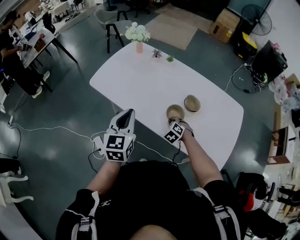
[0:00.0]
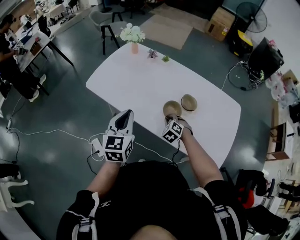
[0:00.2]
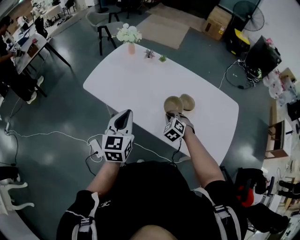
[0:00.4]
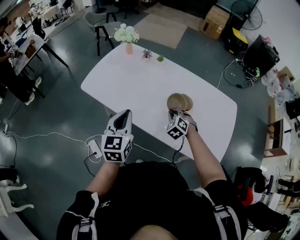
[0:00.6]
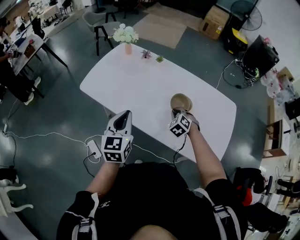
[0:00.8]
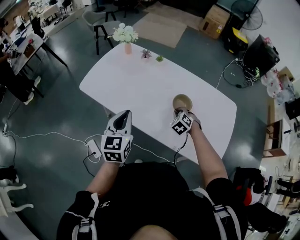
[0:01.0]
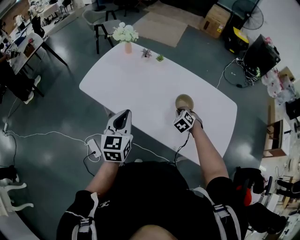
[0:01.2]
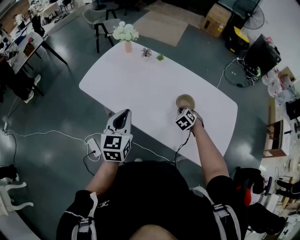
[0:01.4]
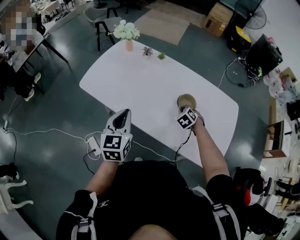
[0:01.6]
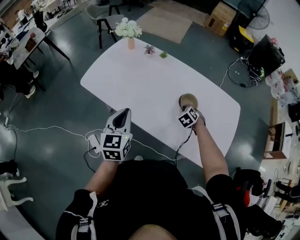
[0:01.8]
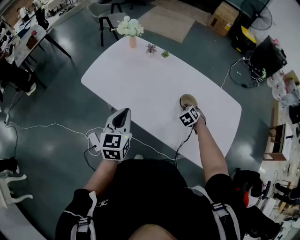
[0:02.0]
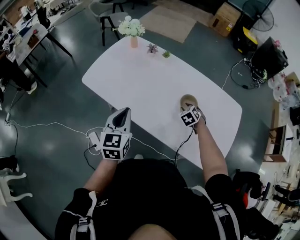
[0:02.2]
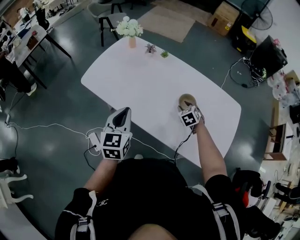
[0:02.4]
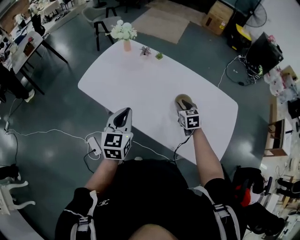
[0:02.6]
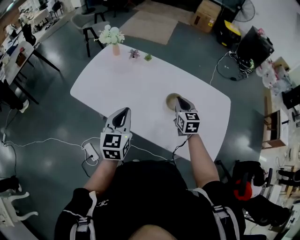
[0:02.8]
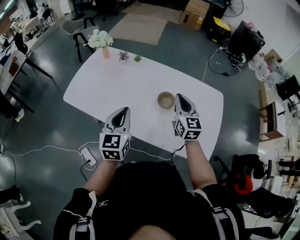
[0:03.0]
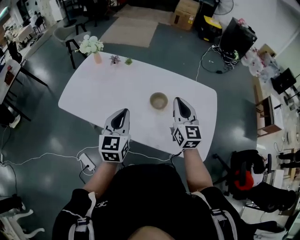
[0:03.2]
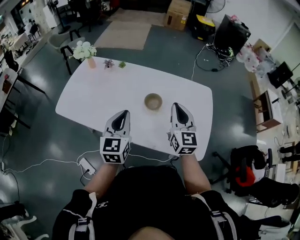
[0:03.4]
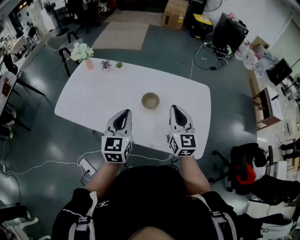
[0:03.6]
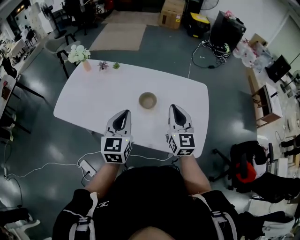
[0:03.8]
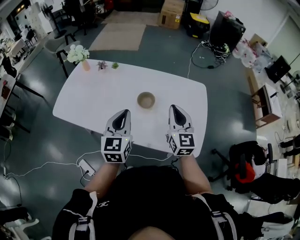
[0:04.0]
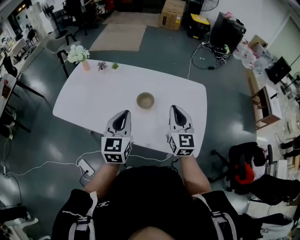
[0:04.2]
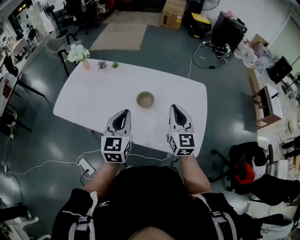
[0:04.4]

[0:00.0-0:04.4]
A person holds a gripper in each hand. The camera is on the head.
0.0 to 1.4 s: The right gripper shifts approximately 10 cm to the right and forward.
1.4 to 3.0 s: The right gripper heads upward, covering roughly 20 cm, tips its fingers upward by roughly 50 degrees, and opens, then closes again. Meanwhile the left gripper moves to the right, about 10 cm.
3.0 to 4.4 s: The right gripper shifts about 15 cm to the right and backward. Meanwhile the left gripper heads to the right, covering some 15 cm.

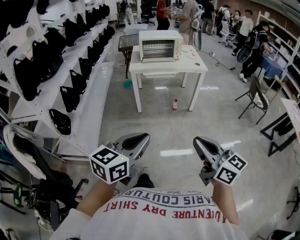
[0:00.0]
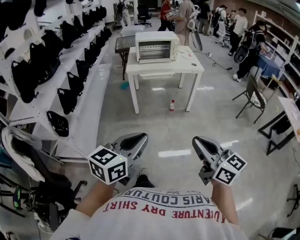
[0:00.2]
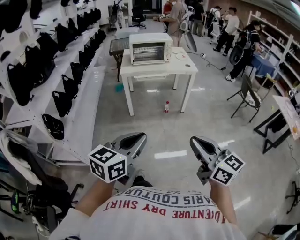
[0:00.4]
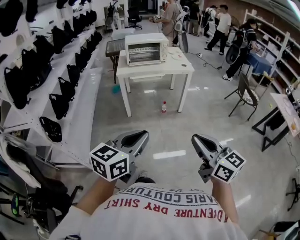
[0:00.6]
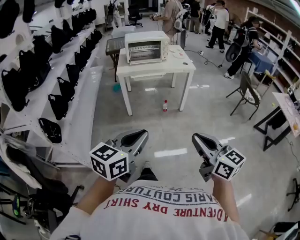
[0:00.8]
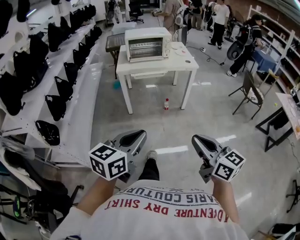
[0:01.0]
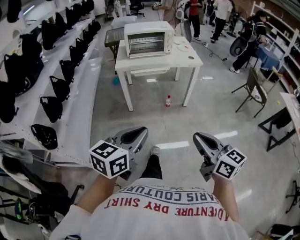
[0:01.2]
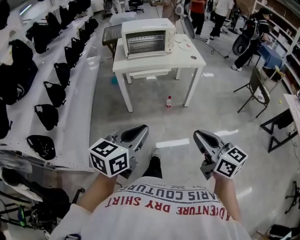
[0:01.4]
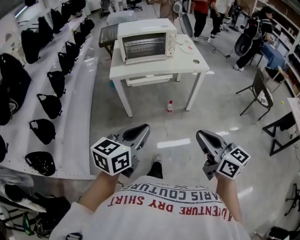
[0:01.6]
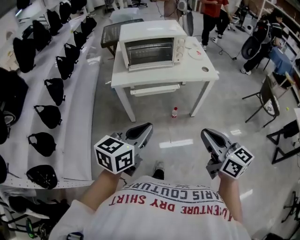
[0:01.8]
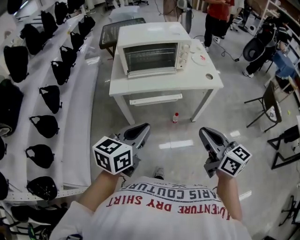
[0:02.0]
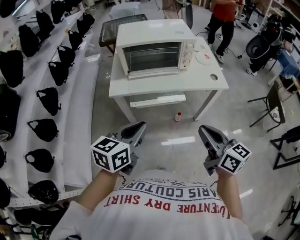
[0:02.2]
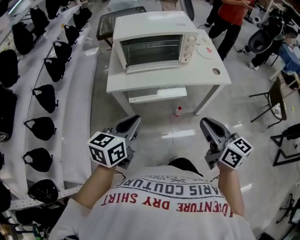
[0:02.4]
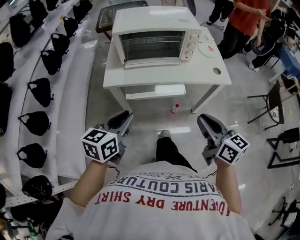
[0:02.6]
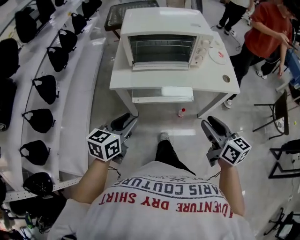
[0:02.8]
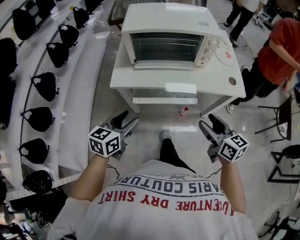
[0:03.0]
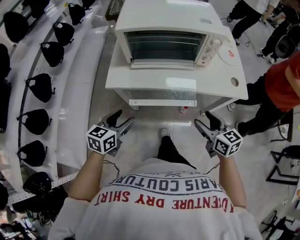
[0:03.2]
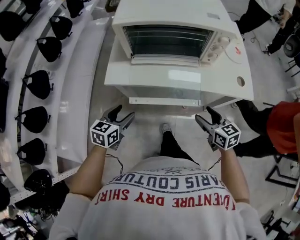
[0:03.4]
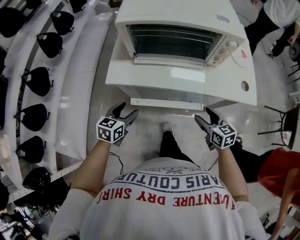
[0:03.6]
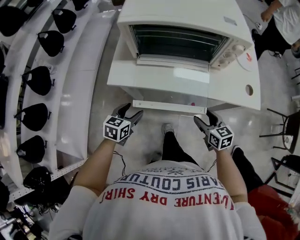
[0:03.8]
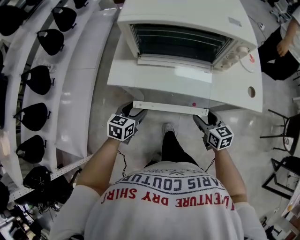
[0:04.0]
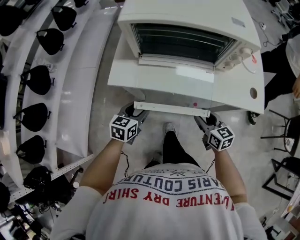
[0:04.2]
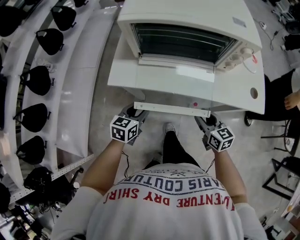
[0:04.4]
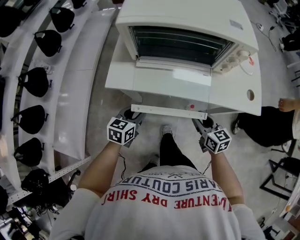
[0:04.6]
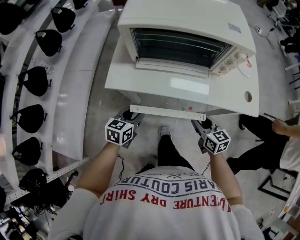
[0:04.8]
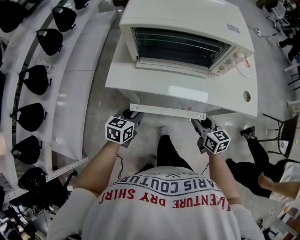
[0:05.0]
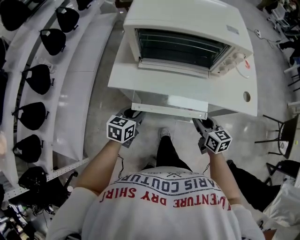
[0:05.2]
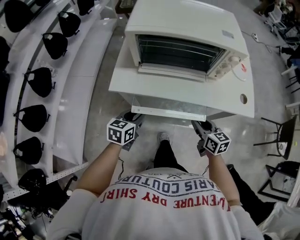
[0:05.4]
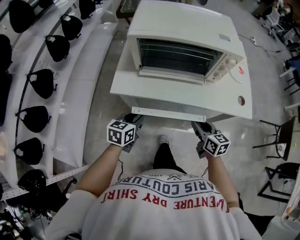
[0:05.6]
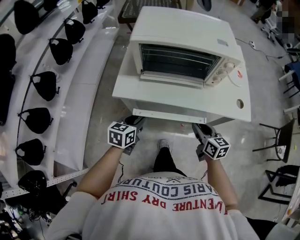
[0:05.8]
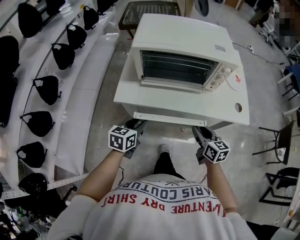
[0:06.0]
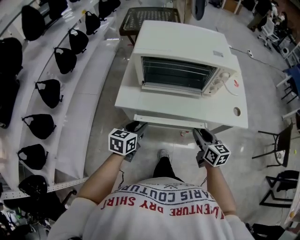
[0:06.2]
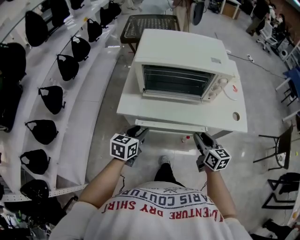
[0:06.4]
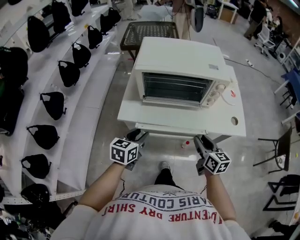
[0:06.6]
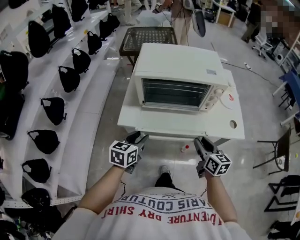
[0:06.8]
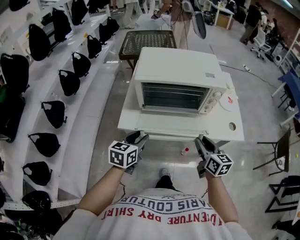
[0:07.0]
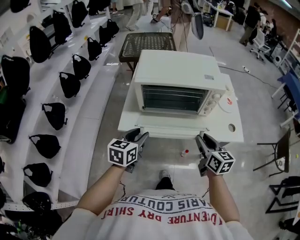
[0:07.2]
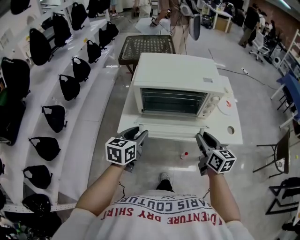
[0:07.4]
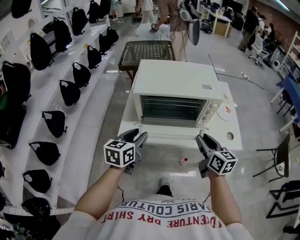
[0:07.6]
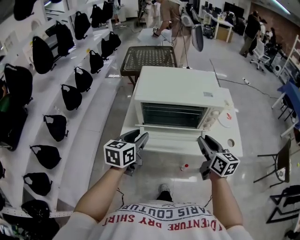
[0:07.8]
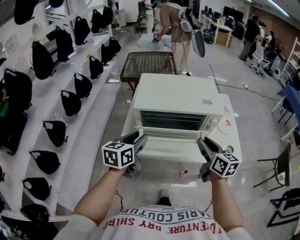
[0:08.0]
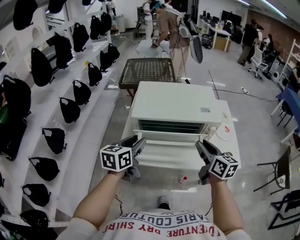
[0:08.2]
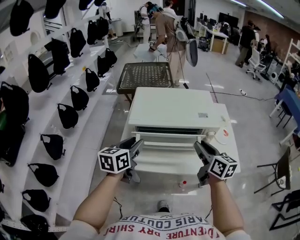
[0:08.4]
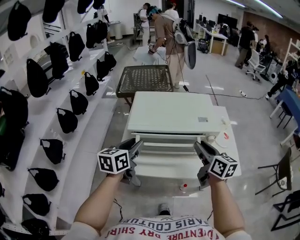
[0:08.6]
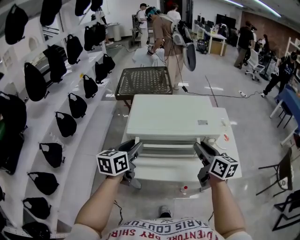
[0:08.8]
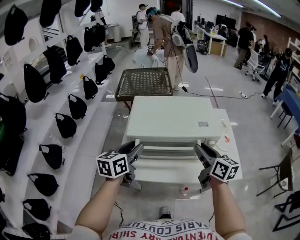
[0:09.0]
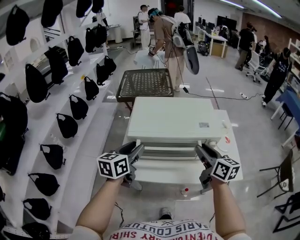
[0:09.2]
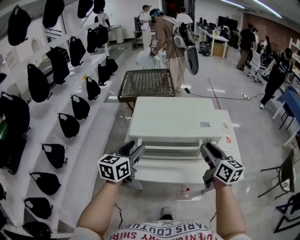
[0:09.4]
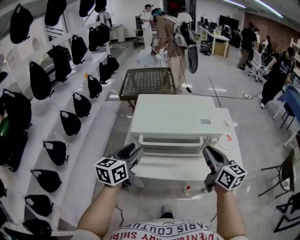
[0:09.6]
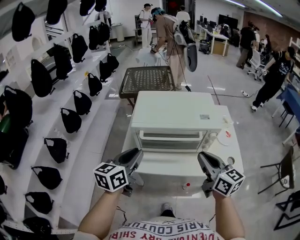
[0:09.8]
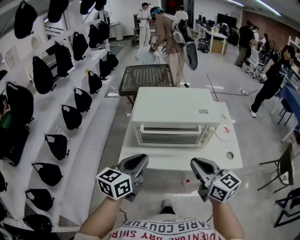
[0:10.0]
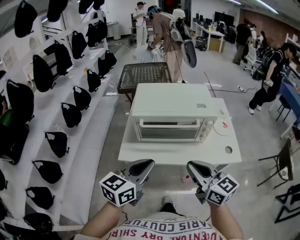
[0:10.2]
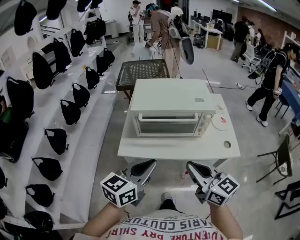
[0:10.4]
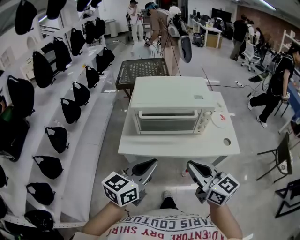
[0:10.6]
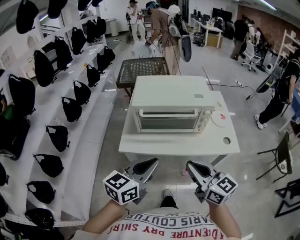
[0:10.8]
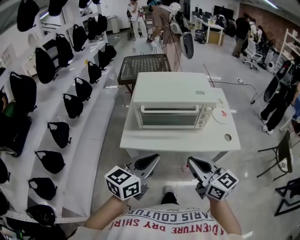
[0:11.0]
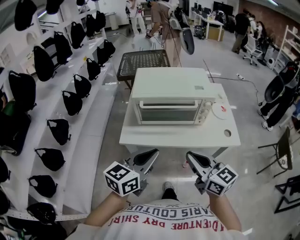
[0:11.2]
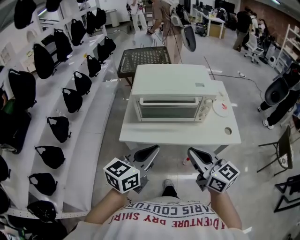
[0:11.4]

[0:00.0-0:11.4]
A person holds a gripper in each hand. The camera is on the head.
0.0 to 1.4 s: Both grippers travel together forward, some 20 cm.
1.4 to 2.8 s: Both grippers are carried forward, approximately 40 cm. The right gripper opens, while the left gripper opens up.
2.8 to 4.2 s: Both grippers travel together downward and forward, about 25 cm. The right gripper swivels some 20 degrees.
4.2 to 5.6 s: The left gripper ends up about 5 cm from where it was. The right gripper ends up about 5 cm from where it was.
5.6 to 7.2 s: The two grippers go approximately 15 cm upward.
7.2 to 8.6 s: Both grippers travel together forward and upward, approximately 15 cm.
8.6 to 10.0 s: The right gripper heads backward and to the left, covering approximately 15 cm, changes its angle by about 20 degrees, and closes. The left gripper moves backward, about 15 cm, and closes.
10.0 to 11.4 s: The right gripper shifts approximately 10 cm backward. The left gripper heads backward and to the right, covering about 10 cm.

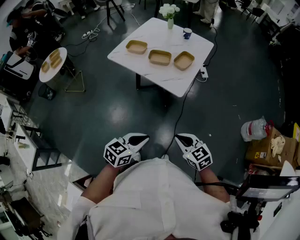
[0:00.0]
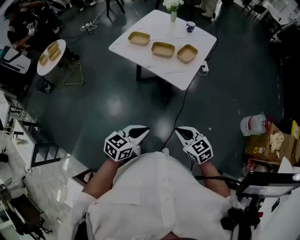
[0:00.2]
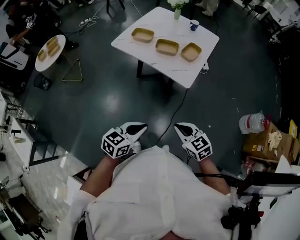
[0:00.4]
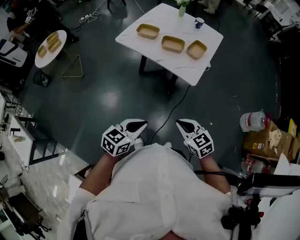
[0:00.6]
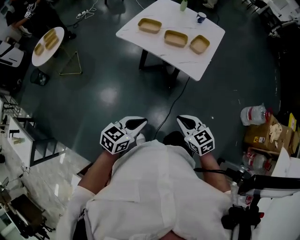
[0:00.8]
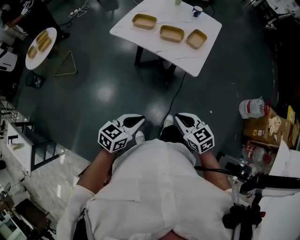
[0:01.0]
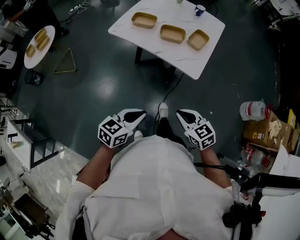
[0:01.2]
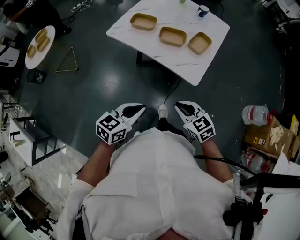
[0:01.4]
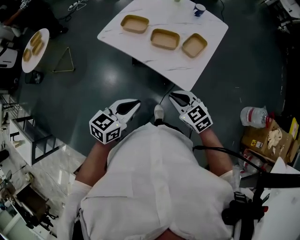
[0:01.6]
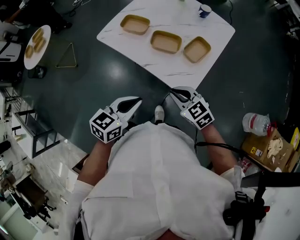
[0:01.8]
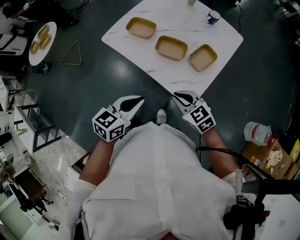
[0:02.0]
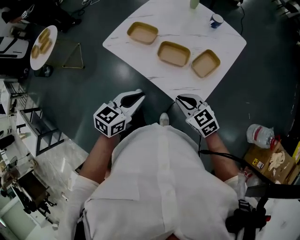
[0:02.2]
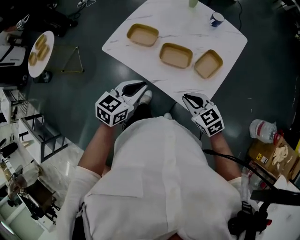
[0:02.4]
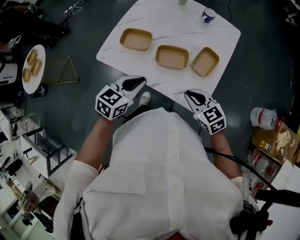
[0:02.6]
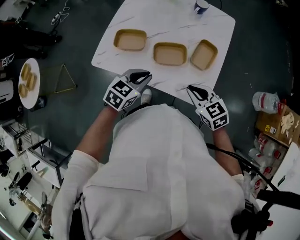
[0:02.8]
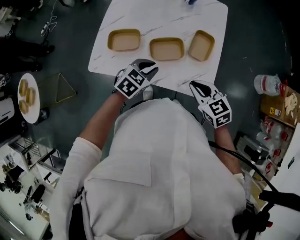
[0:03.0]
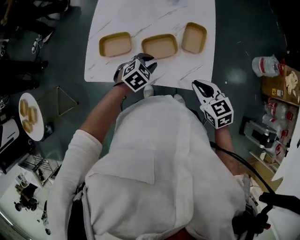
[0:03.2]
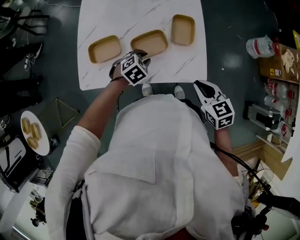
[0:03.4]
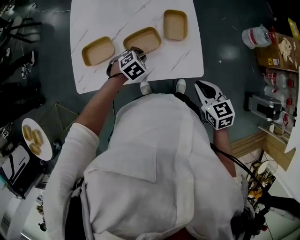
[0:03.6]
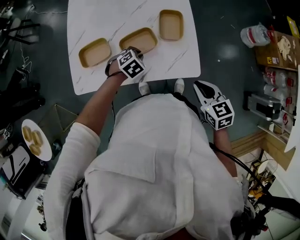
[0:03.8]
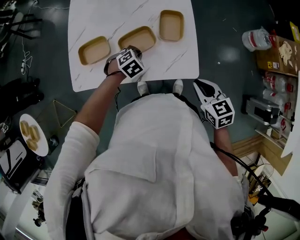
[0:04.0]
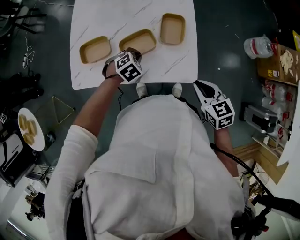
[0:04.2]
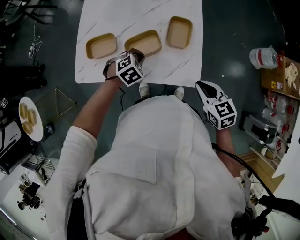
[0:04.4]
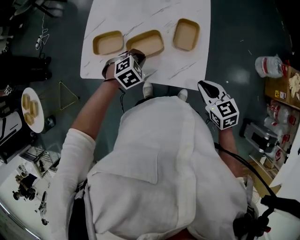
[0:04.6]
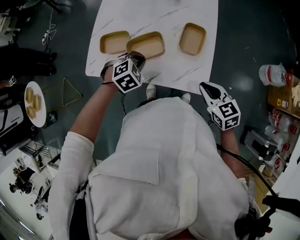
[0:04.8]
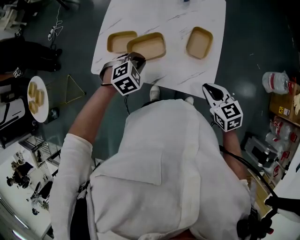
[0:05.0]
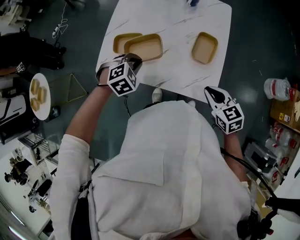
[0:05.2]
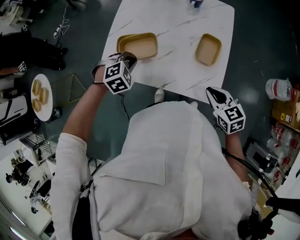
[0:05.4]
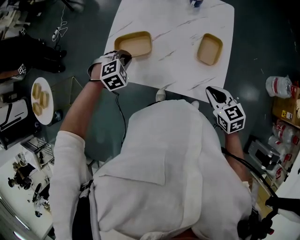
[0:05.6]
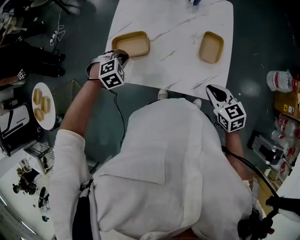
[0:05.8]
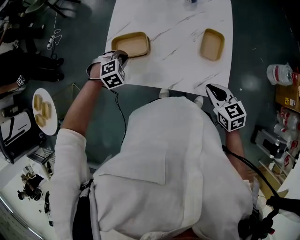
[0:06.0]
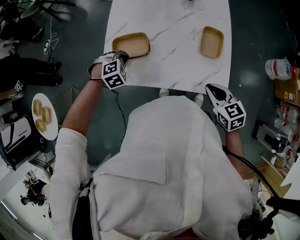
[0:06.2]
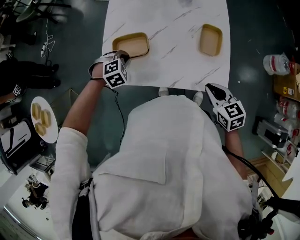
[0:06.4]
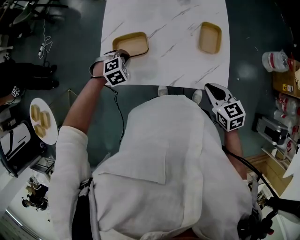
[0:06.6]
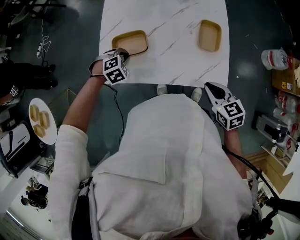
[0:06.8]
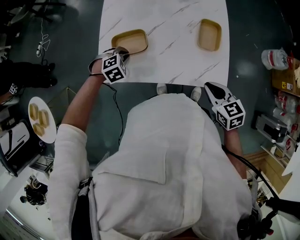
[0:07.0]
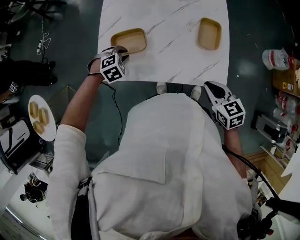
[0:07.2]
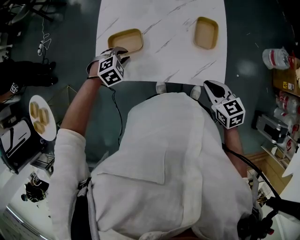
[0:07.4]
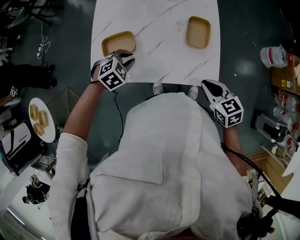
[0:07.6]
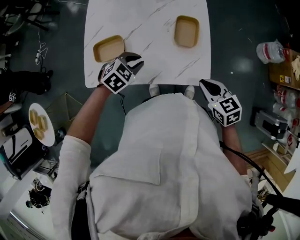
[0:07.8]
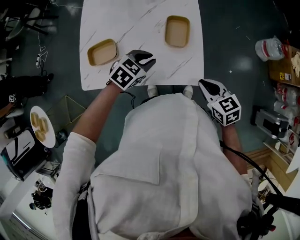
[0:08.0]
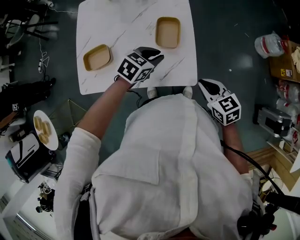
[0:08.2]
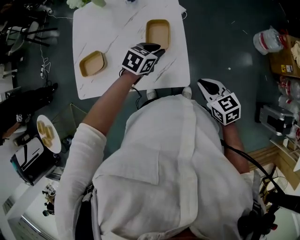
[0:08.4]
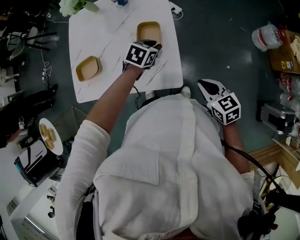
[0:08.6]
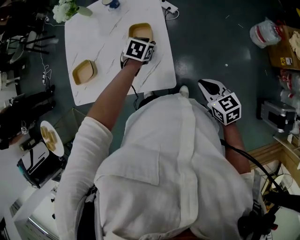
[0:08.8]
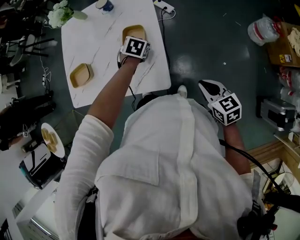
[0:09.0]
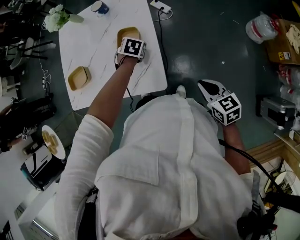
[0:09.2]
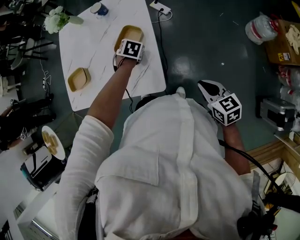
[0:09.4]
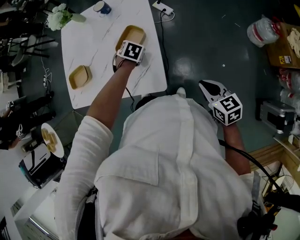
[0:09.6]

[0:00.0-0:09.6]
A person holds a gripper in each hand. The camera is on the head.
0.0 to 1.6 s: The two grippers go roughly 25 cm forward and to the left.
1.6 to 3.2 s: The left gripper changes place by roughly 35 cm, and tilts its fingers approximately 30 degrees downward. The right gripper moves roughly 15 cm, and turns by some 40 degrees.
3.2 to 4.8 s: The left gripper reaches about 5 cm downward, then returns. The right gripper shifts about 5 cm to the right.
4.8 to 6.4 s: The left gripper heads to the left and forward, covering roughly 20 cm, while the right gripper is displaced to the left by about 10 cm.
6.4 to 8.0 s: The right gripper is displaced to the right by about 10 cm. The left gripper is displaced to the right by some 25 cm, and rotates about 40 degrees.
8.0 to 9.6 s: The right gripper travels to the right by roughly 20 cm. Meanwhile the left gripper moves to the right, forward and downward, approximately 20 cm, and rotates about 30 degrees.
